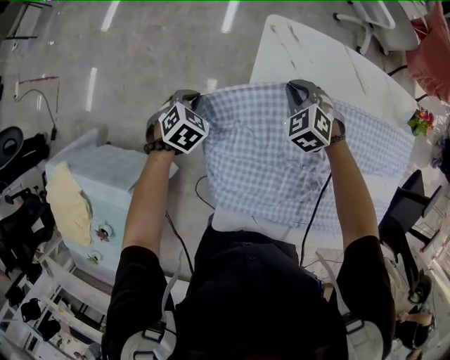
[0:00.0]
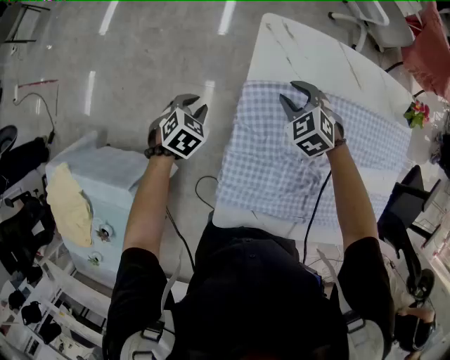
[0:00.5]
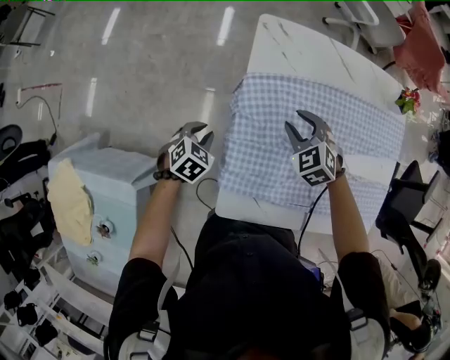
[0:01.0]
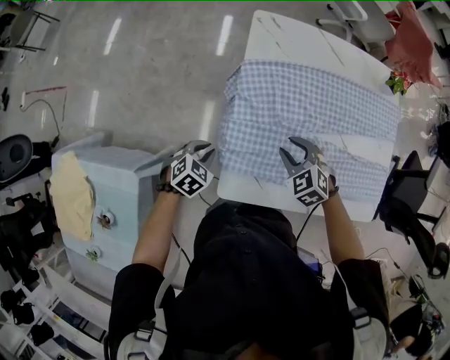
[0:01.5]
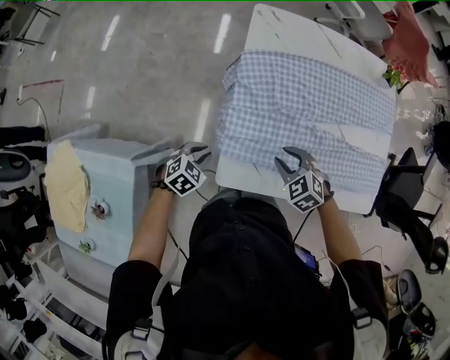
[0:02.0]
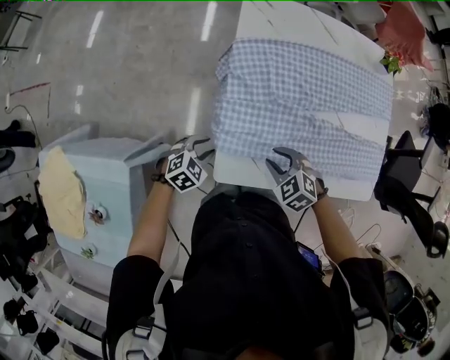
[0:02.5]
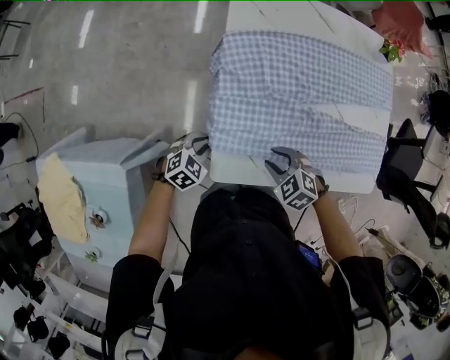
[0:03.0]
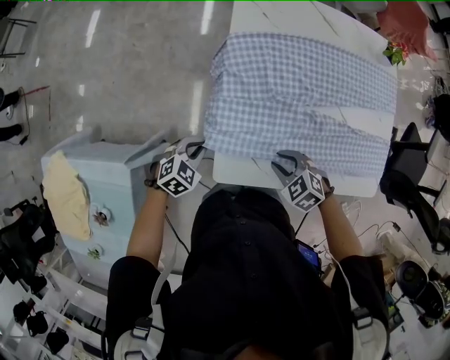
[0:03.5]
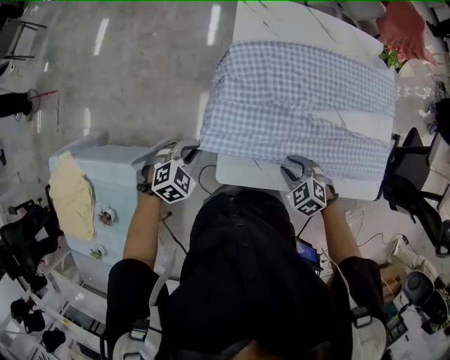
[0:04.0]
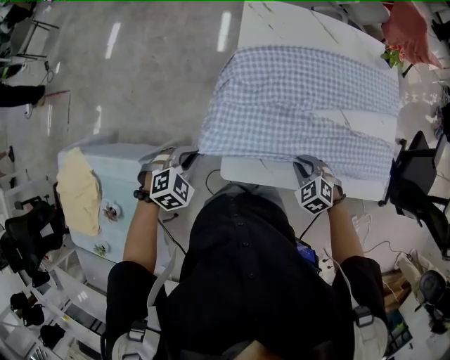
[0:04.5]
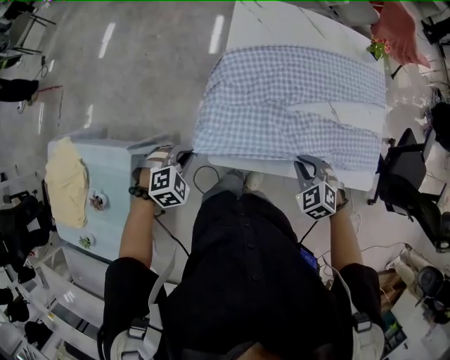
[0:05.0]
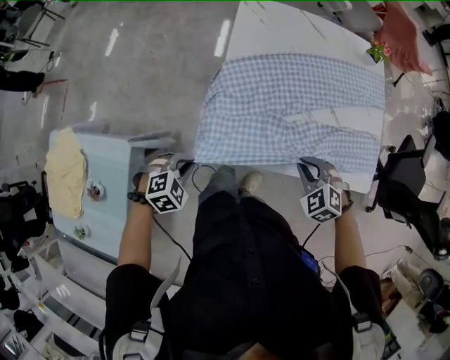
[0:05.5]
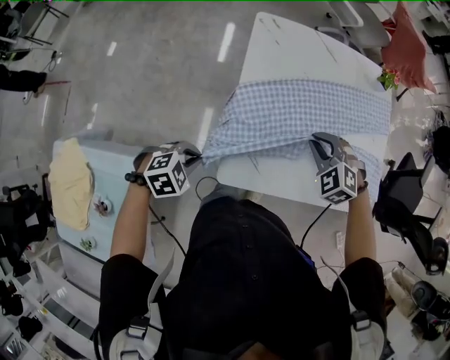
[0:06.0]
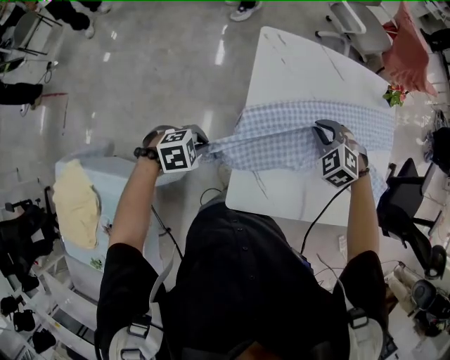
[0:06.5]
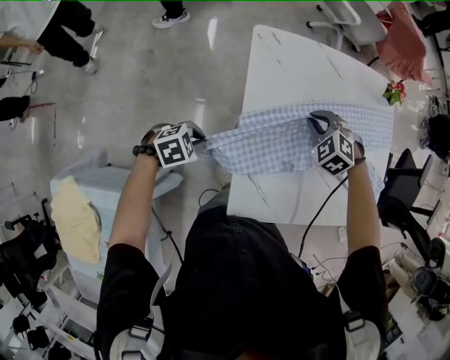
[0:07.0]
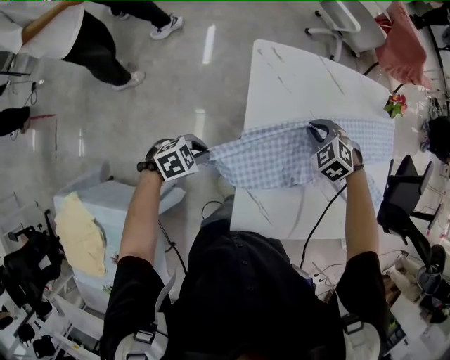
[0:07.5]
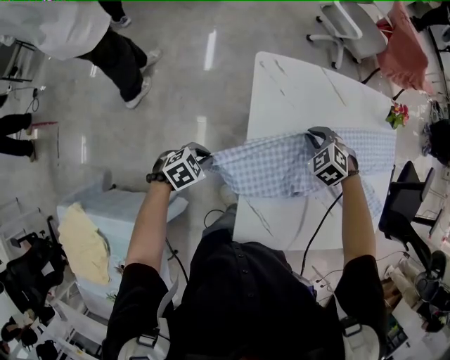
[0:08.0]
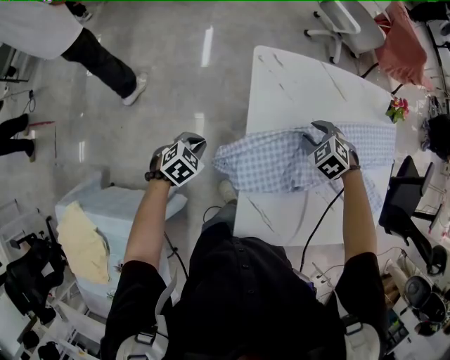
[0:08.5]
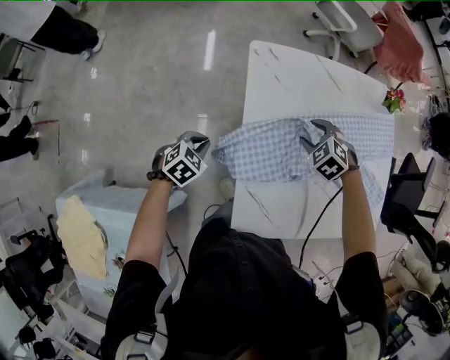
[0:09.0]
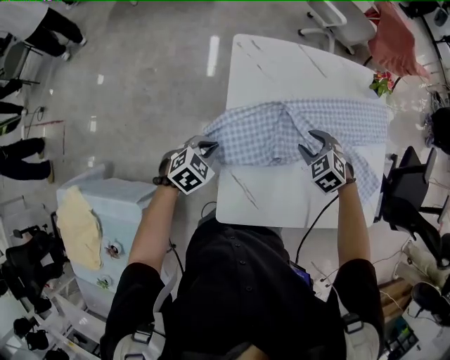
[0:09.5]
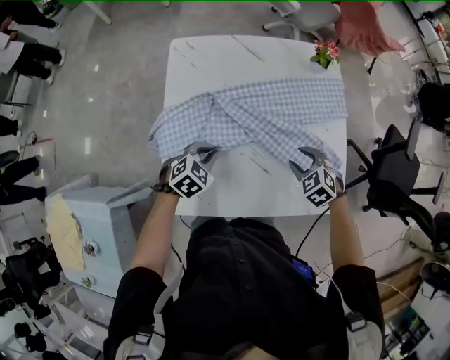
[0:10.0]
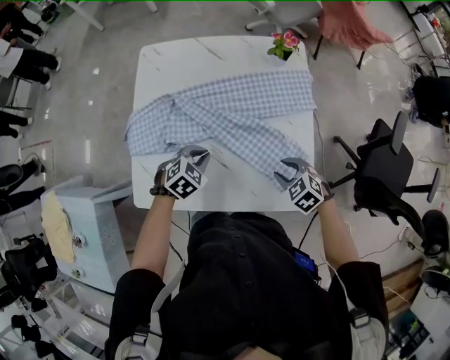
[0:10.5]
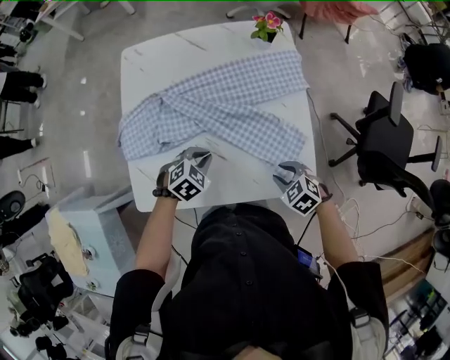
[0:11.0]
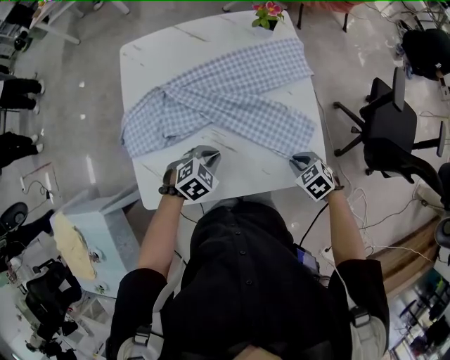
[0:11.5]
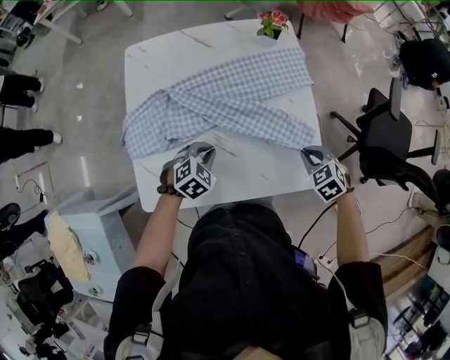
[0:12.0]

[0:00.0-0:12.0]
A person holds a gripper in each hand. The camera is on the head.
0:00.0 to 0:02.0: Both grippers move backward, approximately 35 cm.
0:02.0 to 0:04.0: The right gripper goes about 5 cm backward.
0:04.0 to 0:06.0: The right gripper heads upward and forward, covering some 20 cm, and swivels some 20 degrees. Meanwhile the left gripper moves upward, about 5 cm, and reaches roughly 15 cm backward, then returns.
0:06.0 to 0:08.0: Both grippers travel together forward, to the left and downward, approximately 25 cm.
0:08.0 to 0:10.0: The left gripper moves to the right, approximately 30 cm. The right gripper goes some 35 cm to the right and backward.
0:10.0 to 0:12.0: The two grippers go approximately 15 cm to the right. The right gripper closes its fingers.

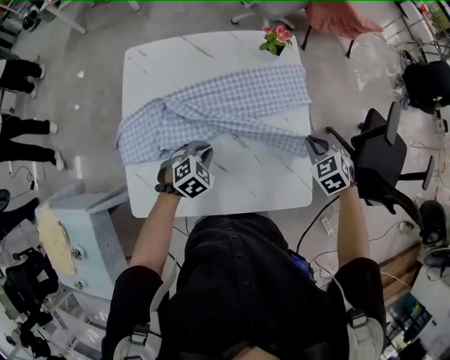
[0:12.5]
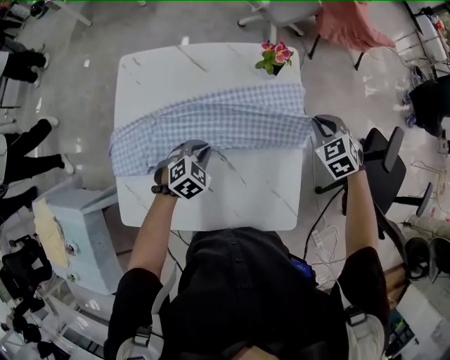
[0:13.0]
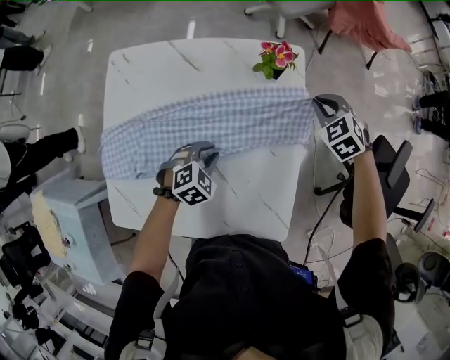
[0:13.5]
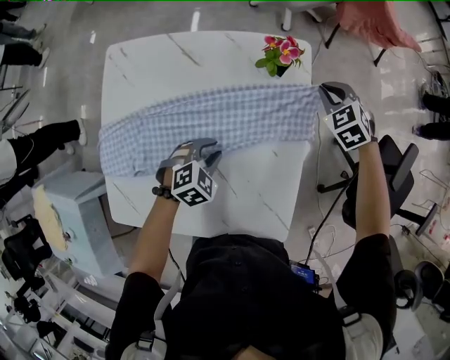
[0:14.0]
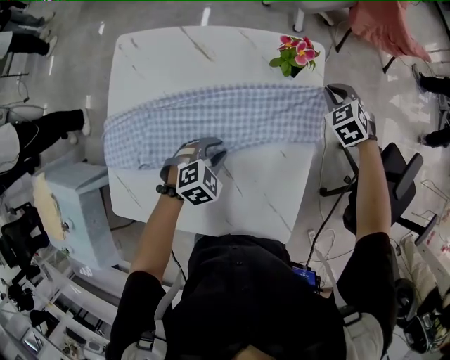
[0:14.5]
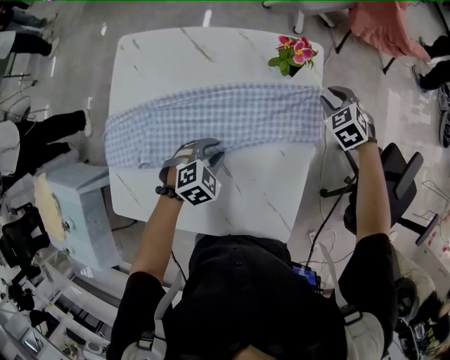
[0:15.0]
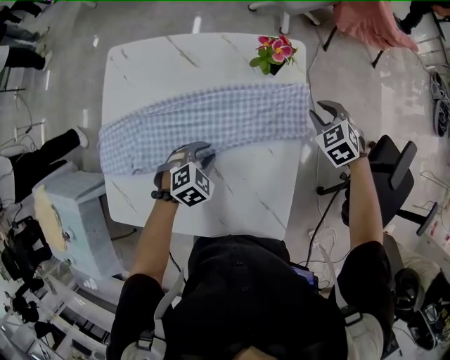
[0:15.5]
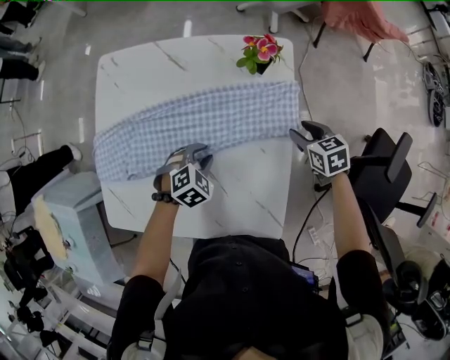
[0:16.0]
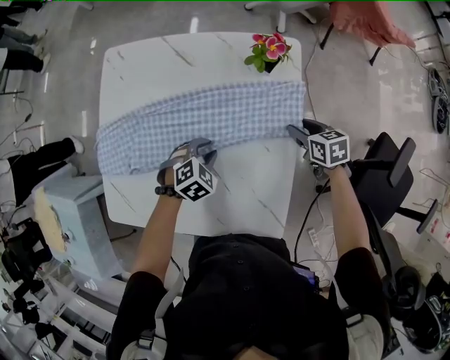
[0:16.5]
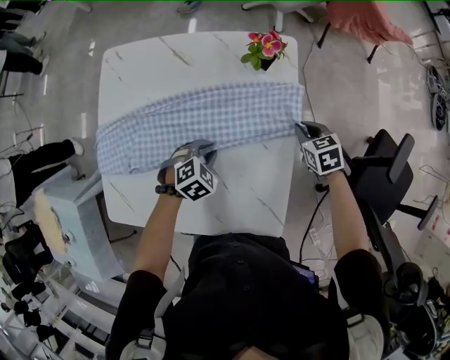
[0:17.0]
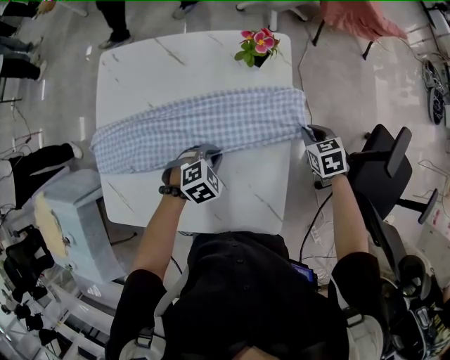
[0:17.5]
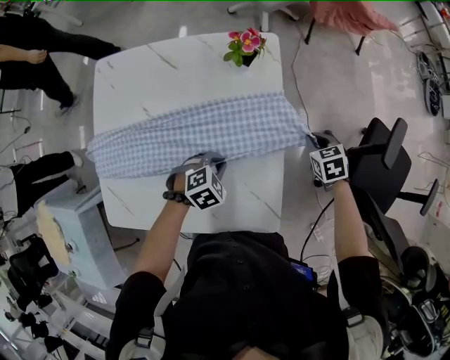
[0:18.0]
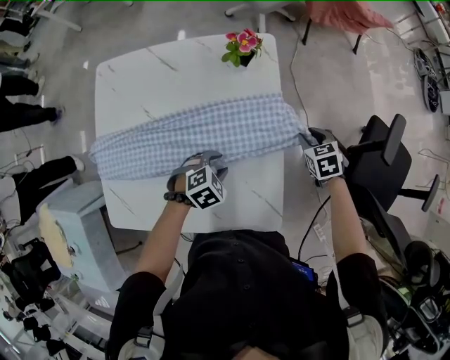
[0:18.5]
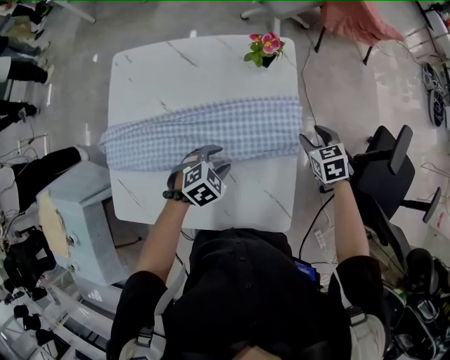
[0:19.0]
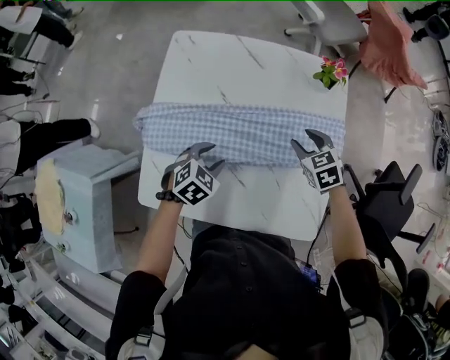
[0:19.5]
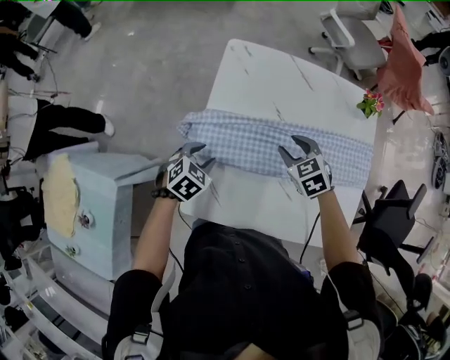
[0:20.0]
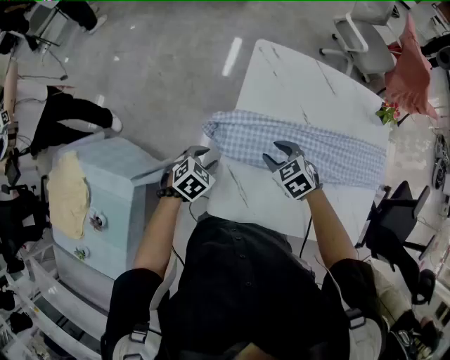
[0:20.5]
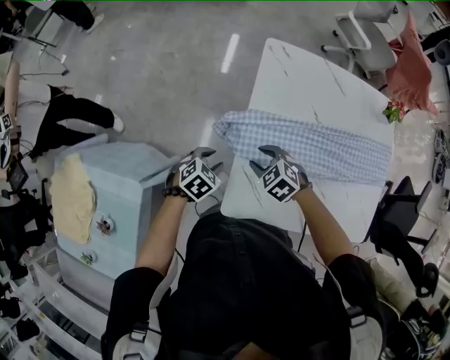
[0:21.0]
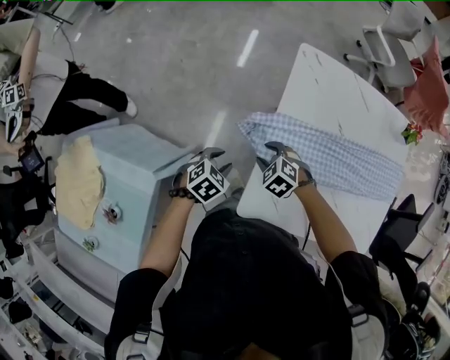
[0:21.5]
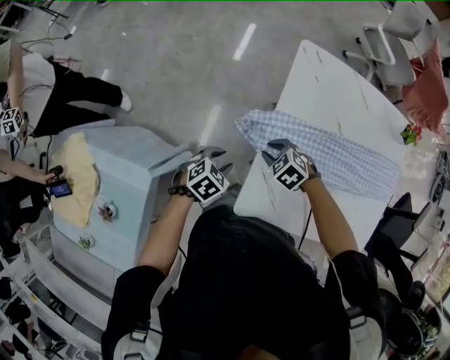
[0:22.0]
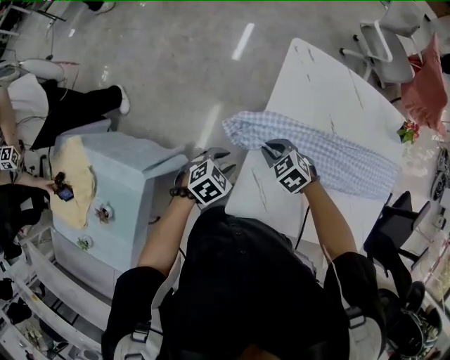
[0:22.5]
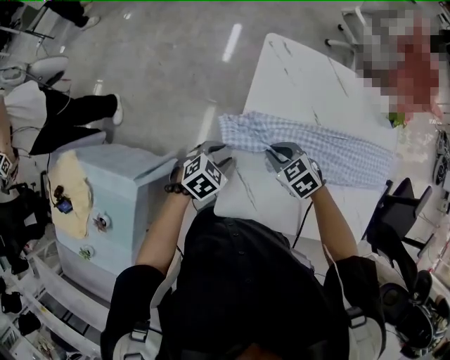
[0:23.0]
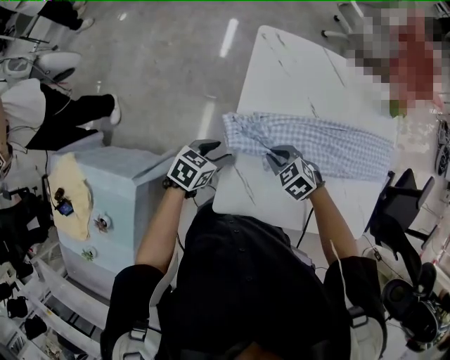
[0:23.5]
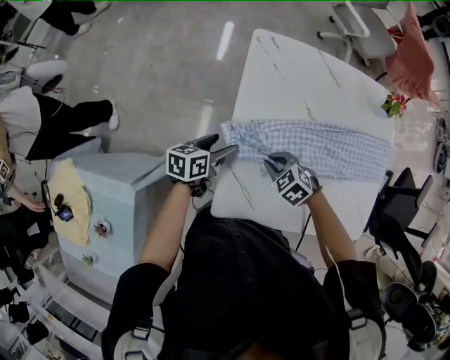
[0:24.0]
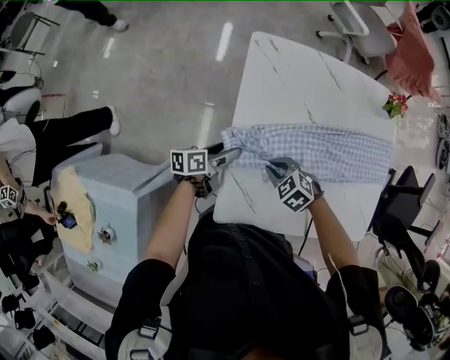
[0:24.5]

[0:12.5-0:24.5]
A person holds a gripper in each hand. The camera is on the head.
0:12.5 to 0:14.5: The right gripper moves forward, roughly 30 cm; the left gripper moves forward and to the right, some 15 cm.
0:14.5 to 0:16.5: The right gripper heads backward, covering approximately 15 cm, rolls clockwise, seen from behind, by roughly 50 degrees, and opens its fingers.
0:16.5 to 0:18.5: The right gripper changes place by roughly 10 cm, and rotates approximately 20 degrees; the left gripper shifts by approximately 10 cm.
0:18.5 to 0:20.5: The pair of grippers is taken approximately 60 cm. The left gripper swivels some 30 degrees, while the right gripper changes its angle by some 40 degrees.
0:20.5 to 0:22.5: The right gripper moves about 10 cm.
0:22.5 to 0:24.5: The left gripper ends up about 10 cm from where it was, twists about 60 degrees counterclockwise, seen from behind, and opens its fingers; the right gripper changes place by about 10 cm.

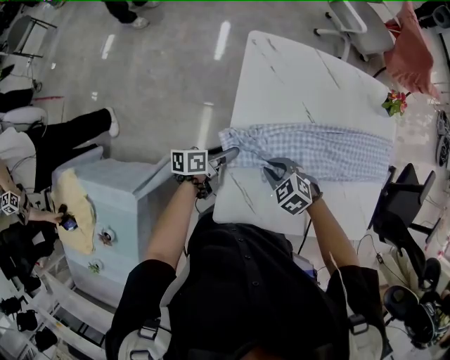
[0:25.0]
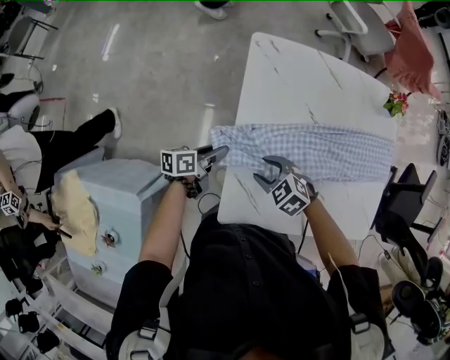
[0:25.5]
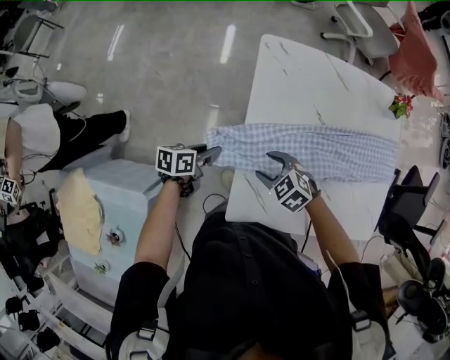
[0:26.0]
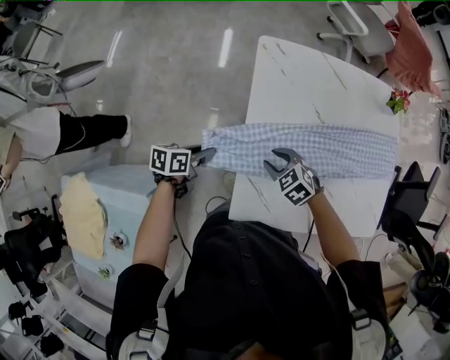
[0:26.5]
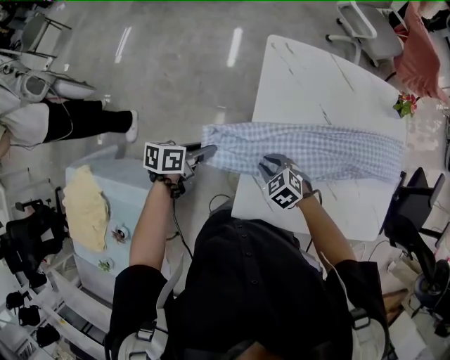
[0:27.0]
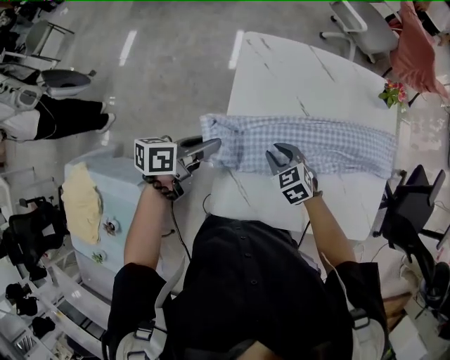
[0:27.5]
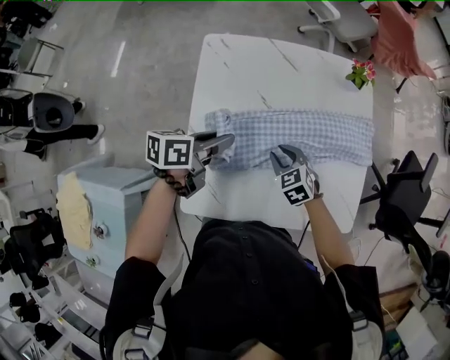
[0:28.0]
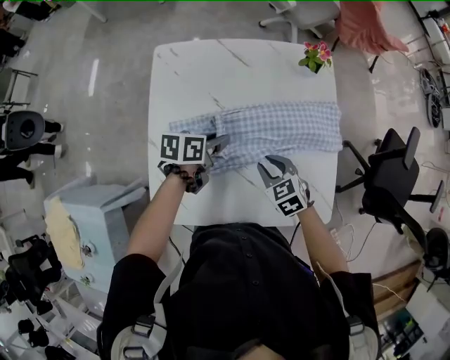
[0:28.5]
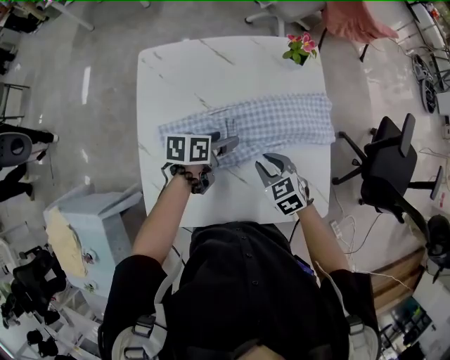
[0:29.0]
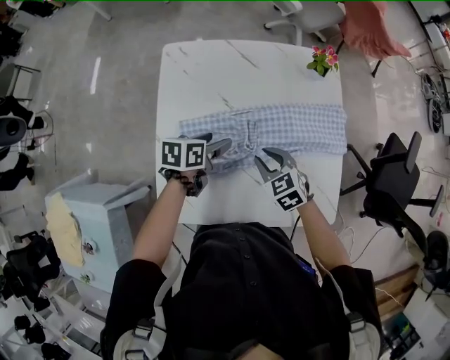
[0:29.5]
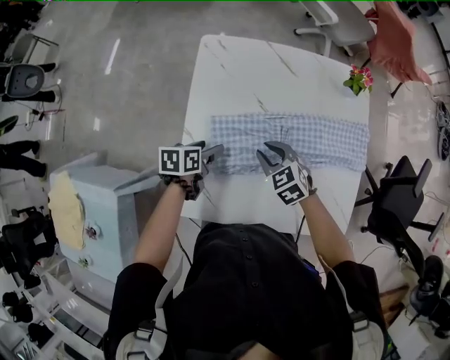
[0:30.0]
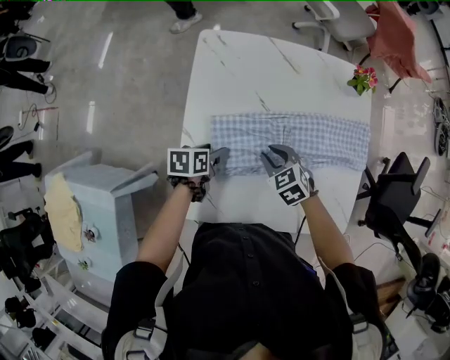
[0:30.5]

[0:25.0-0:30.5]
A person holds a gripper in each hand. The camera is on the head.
0:25.0 to 0:27.0: The right gripper shifts by roughly 10 cm. Meanwhile the left gripper moves roughly 15 cm.
0:27.0 to 0:28.5: The grippers both shift to the right by roughly 35 cm. The right gripper changes its angle by roughly 20 degrees.
0:28.5 to 0:30.5: The left gripper heads to the left and downward, covering approximately 15 cm, and opens; the right gripper travels to the left by about 15 cm.
